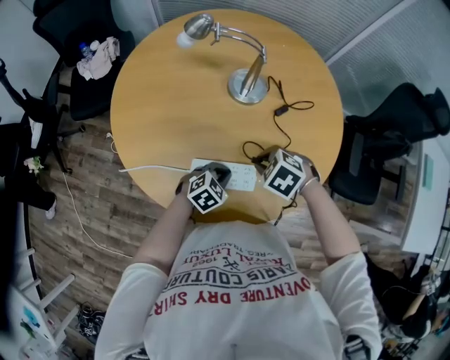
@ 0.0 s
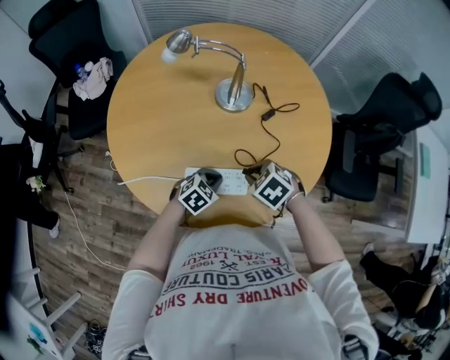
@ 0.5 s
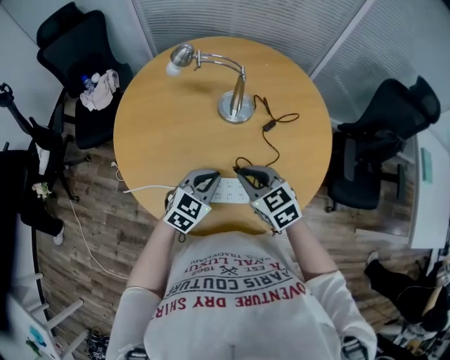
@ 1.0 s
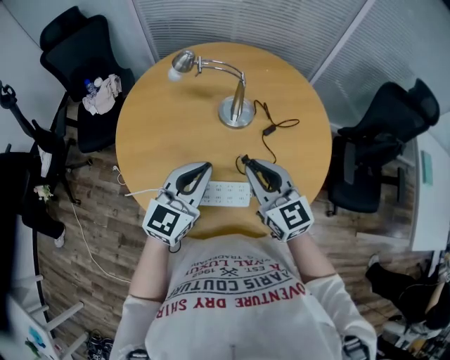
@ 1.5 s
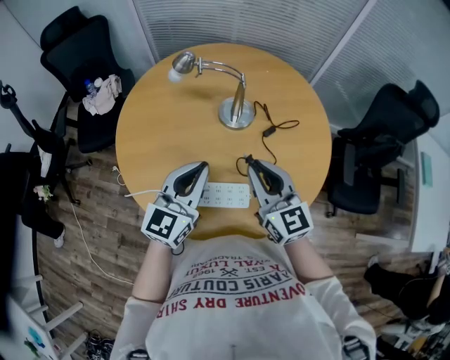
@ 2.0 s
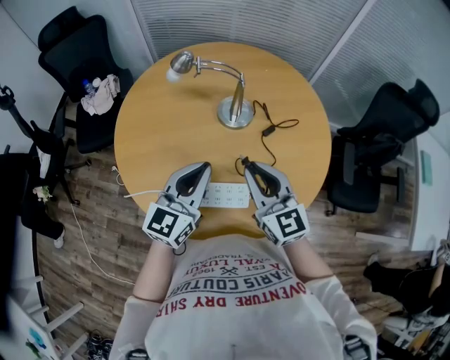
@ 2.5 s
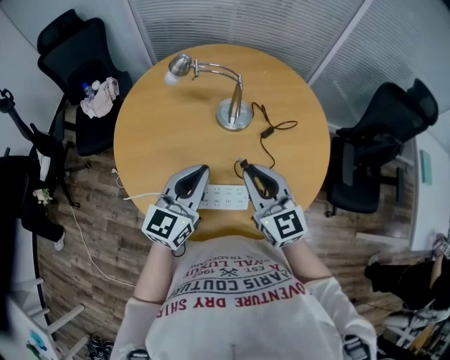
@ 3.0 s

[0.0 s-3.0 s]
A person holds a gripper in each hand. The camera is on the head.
0.0 to 1.5 s: The right gripper heads upward, covering roughly 15 cm, and points its fingers some 70 degrees further upward. Meanwhile the left gripper is displaced upward by some 30 cm, and tips its fingers upward by some 40 degrees.
1.5 to 3.0 s: There are only small adjustments of the grippers.

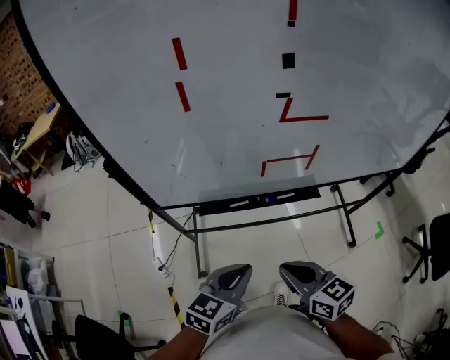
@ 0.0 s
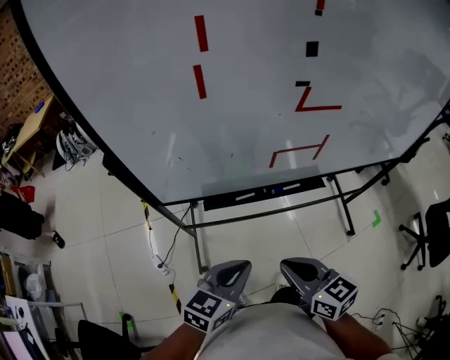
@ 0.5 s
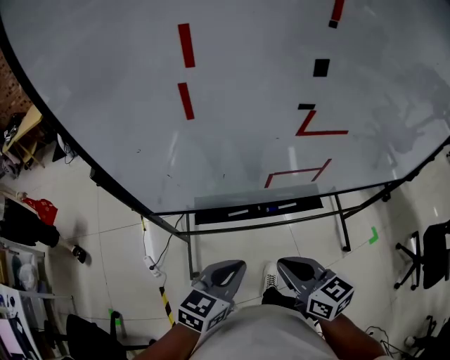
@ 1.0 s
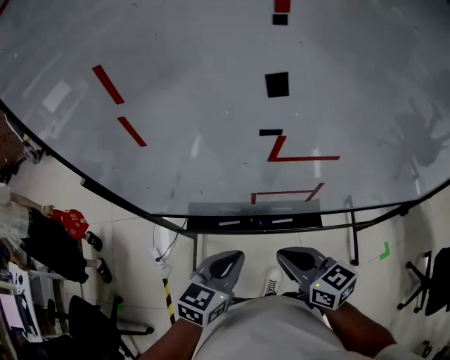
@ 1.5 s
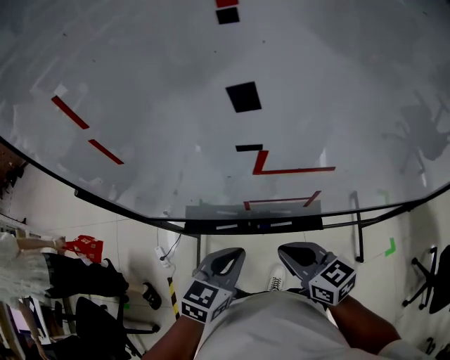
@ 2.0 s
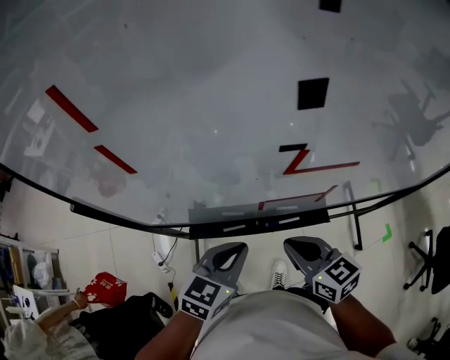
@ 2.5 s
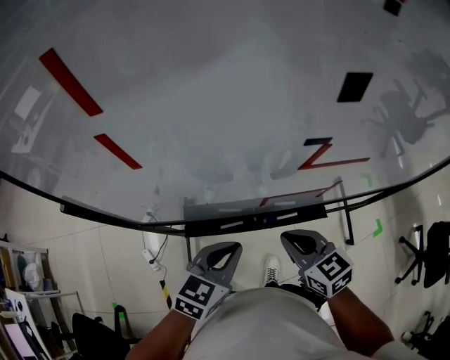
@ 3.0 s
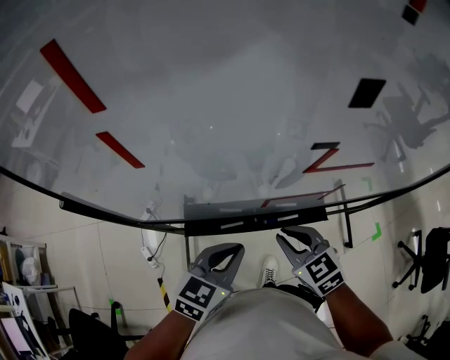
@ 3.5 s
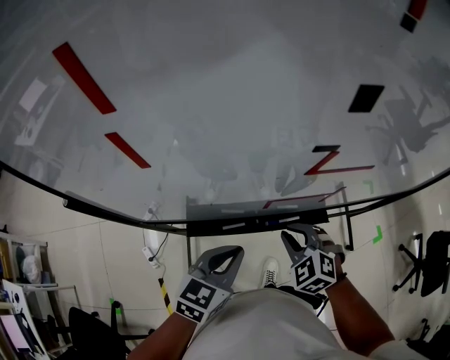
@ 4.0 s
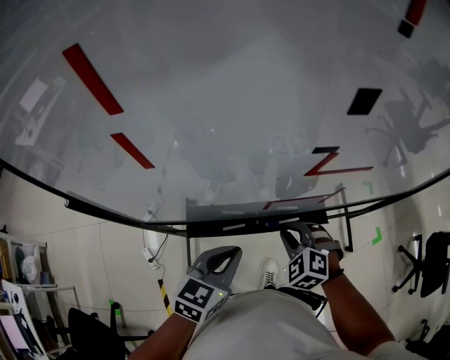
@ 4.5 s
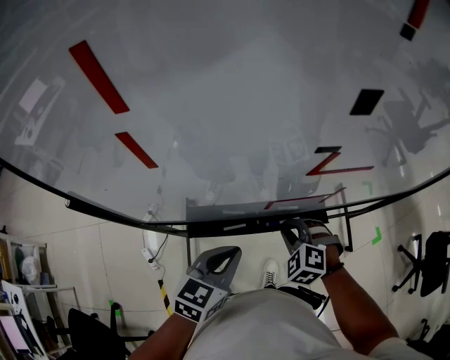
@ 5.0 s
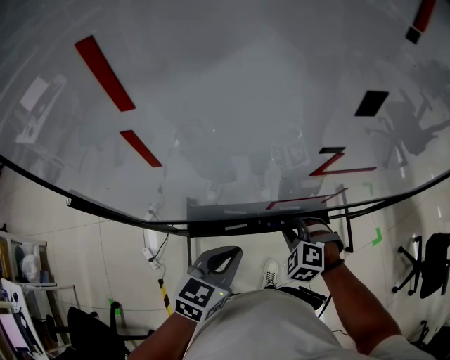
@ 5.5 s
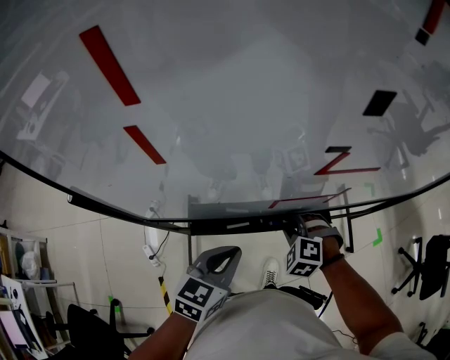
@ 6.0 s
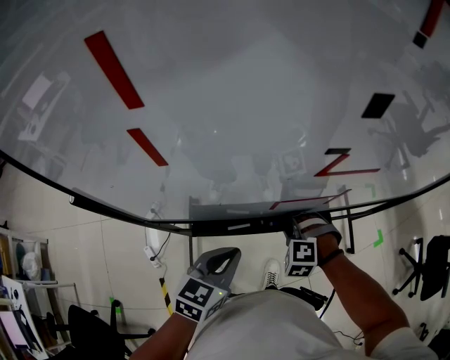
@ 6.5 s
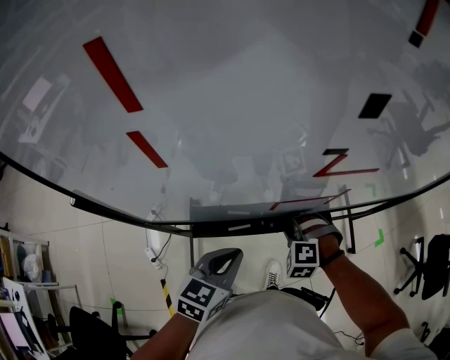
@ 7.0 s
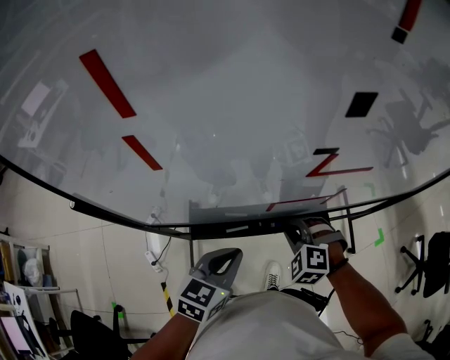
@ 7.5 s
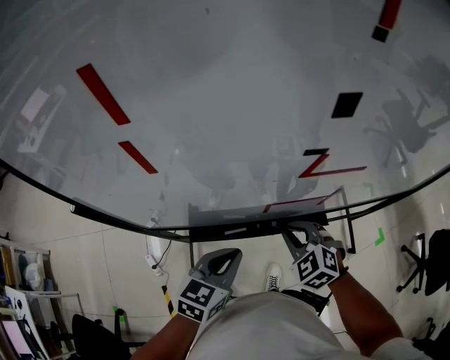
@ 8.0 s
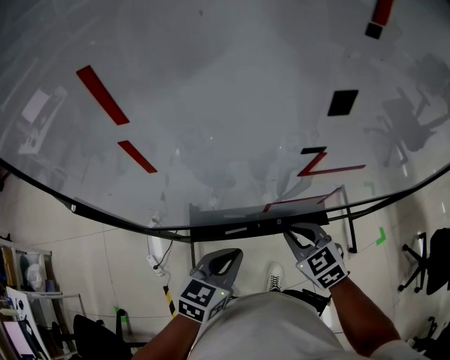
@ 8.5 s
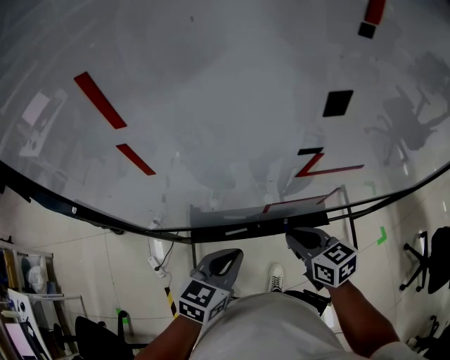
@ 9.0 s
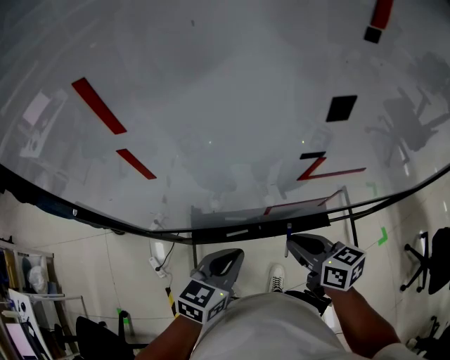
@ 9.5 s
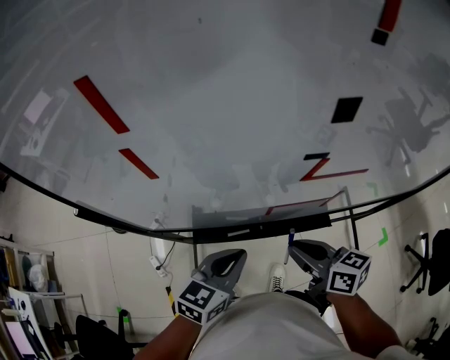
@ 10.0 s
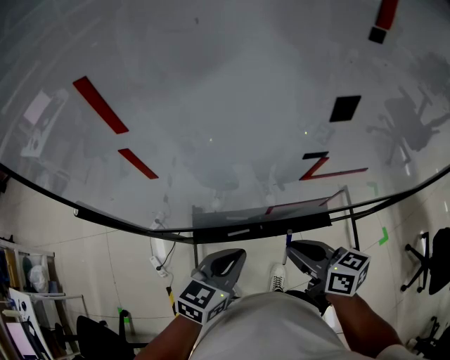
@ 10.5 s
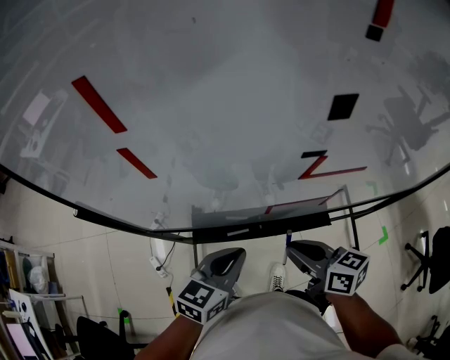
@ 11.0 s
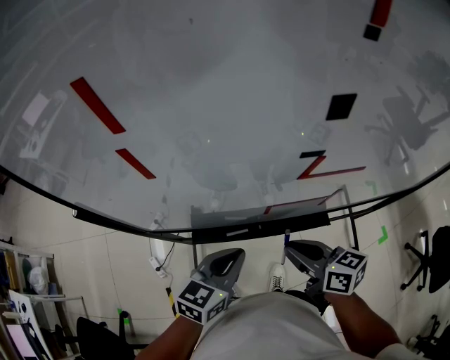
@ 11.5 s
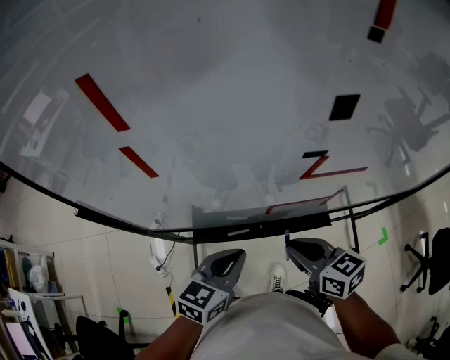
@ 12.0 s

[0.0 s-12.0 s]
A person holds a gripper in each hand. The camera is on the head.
0.0 to 2.0 s: The two grippers go approximately 15 cm forward.
2.0 to 4.0 s: The right gripper heads downward, covering some 5 cm, and rotates roughly 50 degrees.
4.0 to 6.0 s: The right gripper shifts about 5 cm downward, and turns by about 20 degrees.
6.0 to 8.0 s: The right gripper heads upward, covering approximately 5 cm, and changes its angle by about 30 degrees.
8.0 to 10.0 s: The right gripper heads upward, covering some 5 cm, and twists approximately 60 degrees clockwise, seen from behind.
10.0 to 12.0 s: The grippers move only a little.

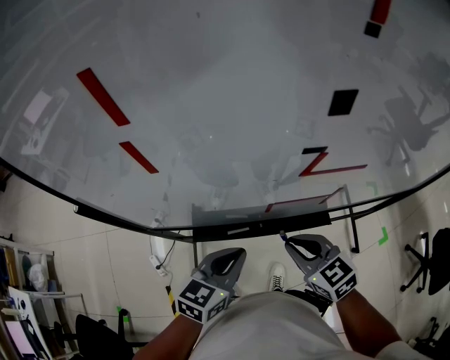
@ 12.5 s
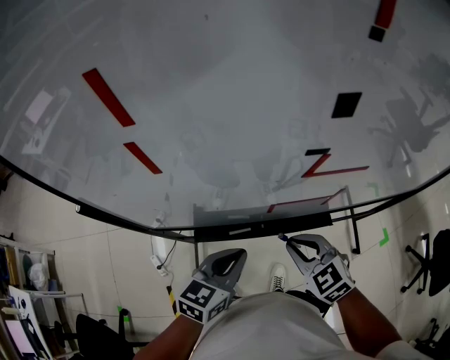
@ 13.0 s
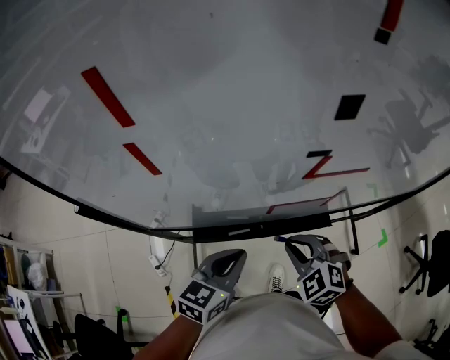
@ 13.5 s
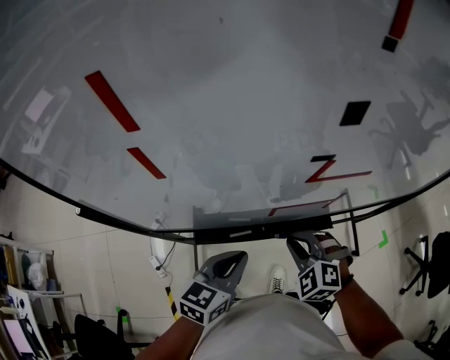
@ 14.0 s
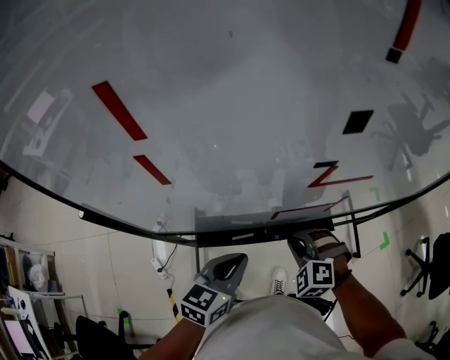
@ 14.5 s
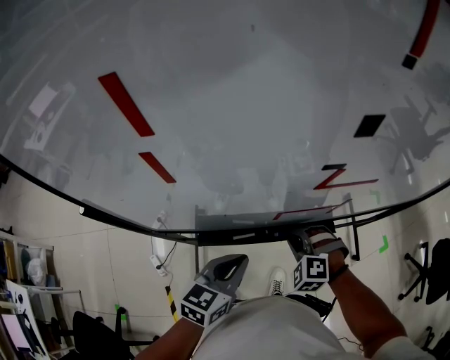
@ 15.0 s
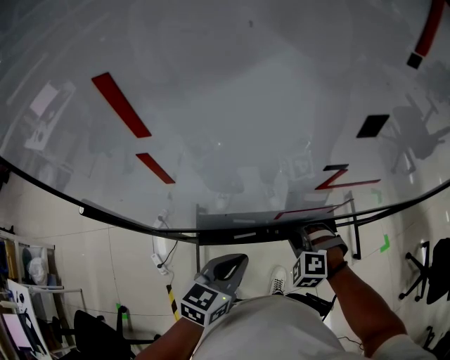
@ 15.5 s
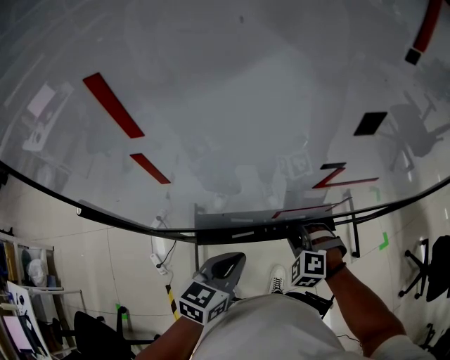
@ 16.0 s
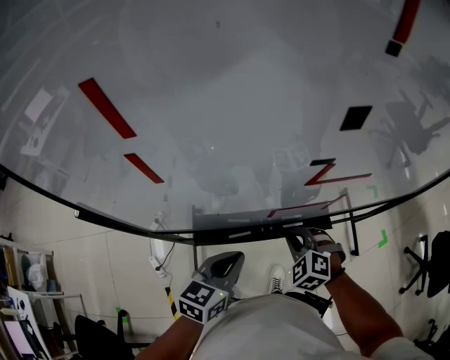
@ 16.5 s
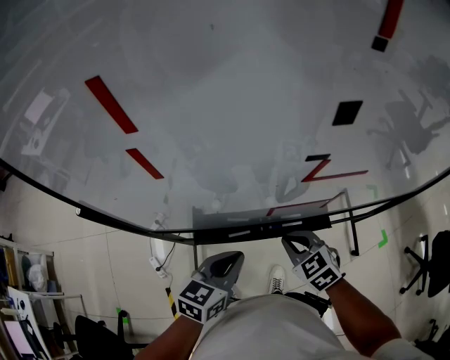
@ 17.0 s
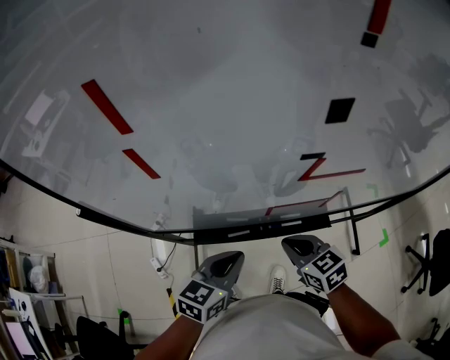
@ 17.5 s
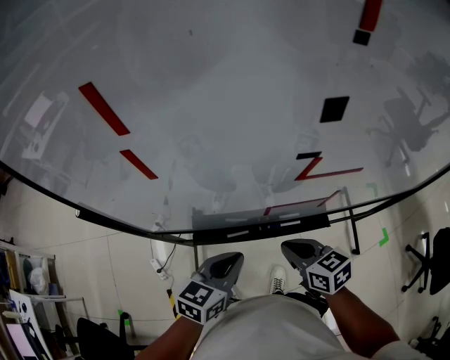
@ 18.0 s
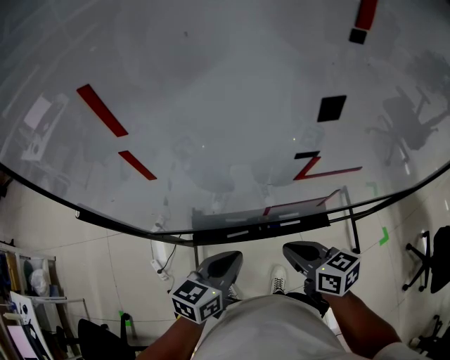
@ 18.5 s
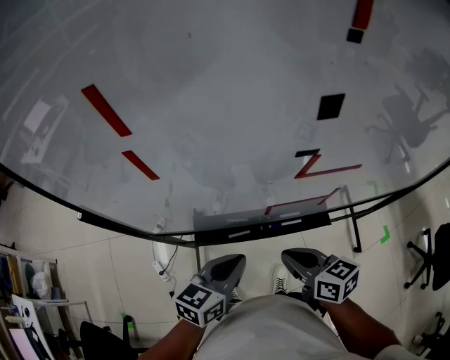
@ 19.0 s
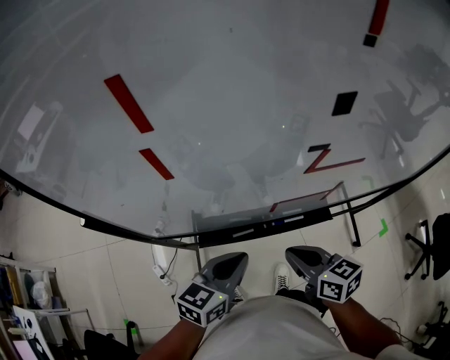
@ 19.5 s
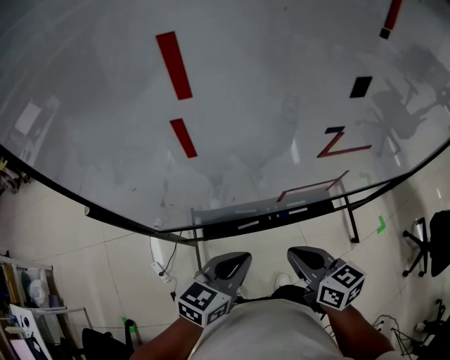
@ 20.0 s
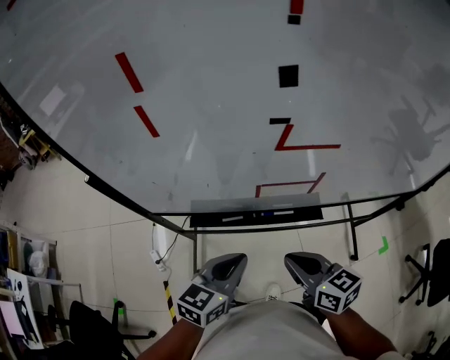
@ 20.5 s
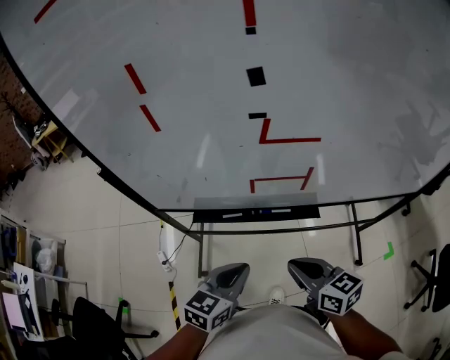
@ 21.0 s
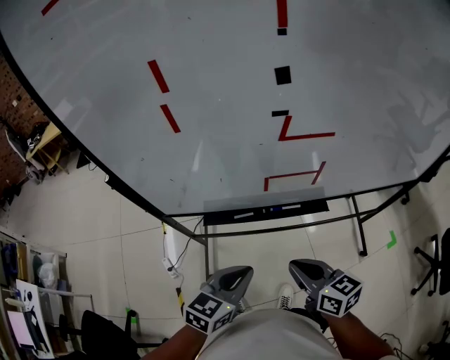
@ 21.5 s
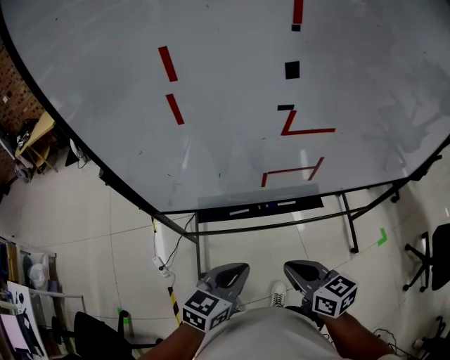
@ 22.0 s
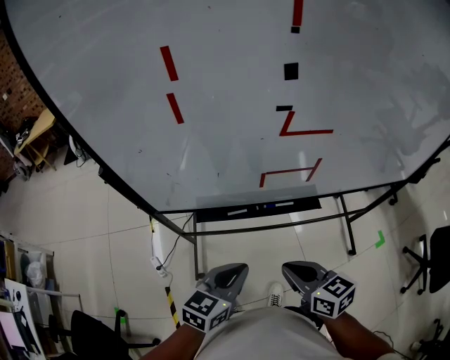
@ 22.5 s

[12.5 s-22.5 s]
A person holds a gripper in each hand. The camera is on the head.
12.5 to 14.5 s: The right gripper heads downward, covering approximately 5 cm, and rotates around the line of its fingers by roughly 50 degrees, counterclockwise from behind.
14.5 to 16.5 s: There are only small adjustments of the grippers.
16.5 to 18.5 s: The right gripper travels upward by about 10 cm, and twists some 60 degrees clockwise, seen from behind.
18.5 to 20.5 s: Both grippers move backward, approximately 5 cm.
20.5 to 22.5 s: Both grippers move backward, approximately 5 cm.

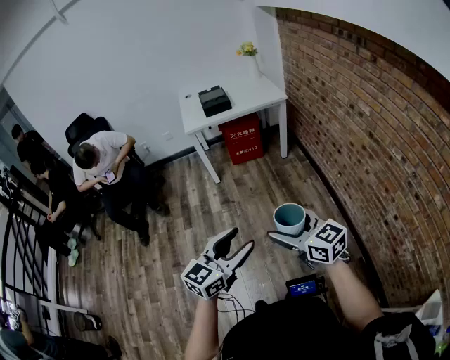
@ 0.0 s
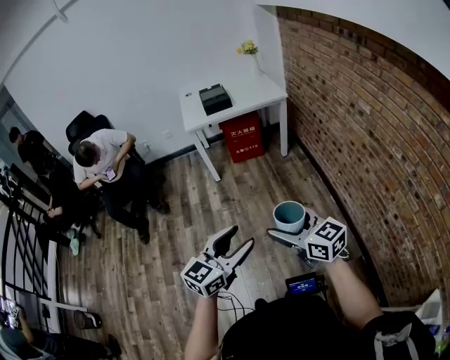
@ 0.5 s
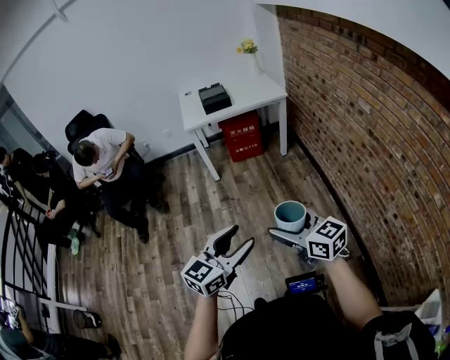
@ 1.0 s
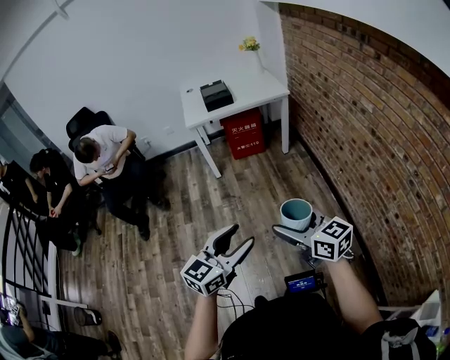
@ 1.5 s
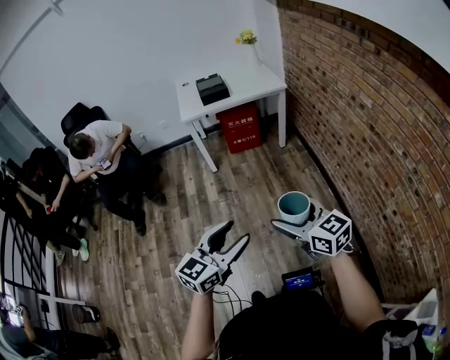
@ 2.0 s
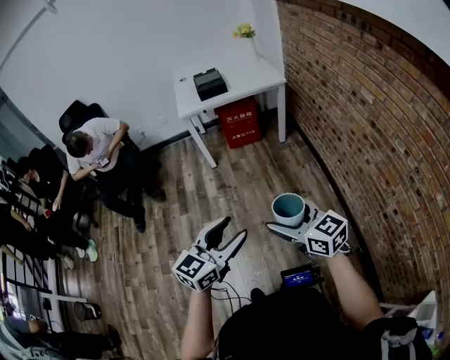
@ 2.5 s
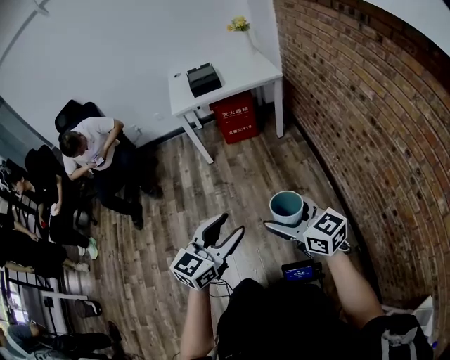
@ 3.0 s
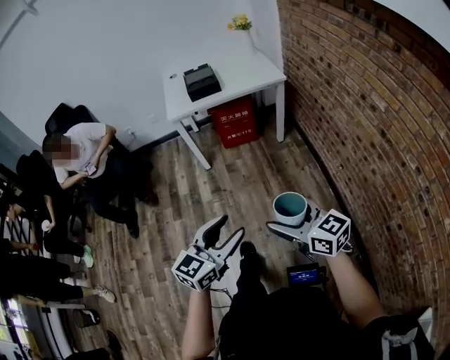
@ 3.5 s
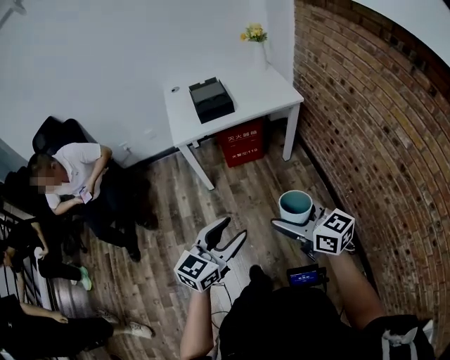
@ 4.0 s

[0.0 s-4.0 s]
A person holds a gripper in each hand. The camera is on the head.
0.0 to 2.0 s: The grippers stay close to where they were, moving slightly.
2.0 to 4.0 s: Both grippers move forward, some 30 cm.
